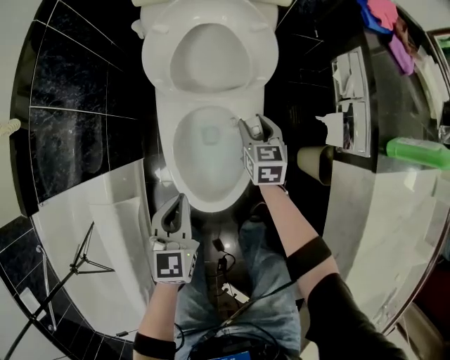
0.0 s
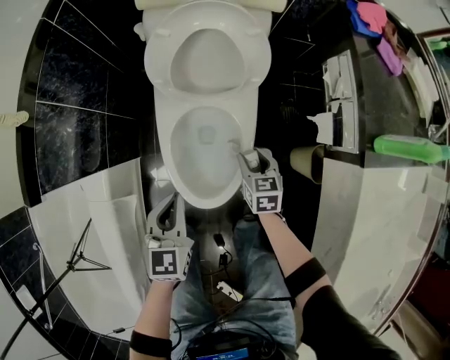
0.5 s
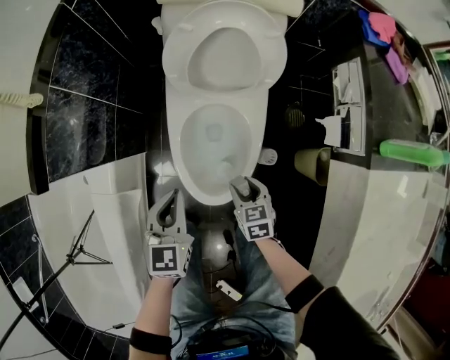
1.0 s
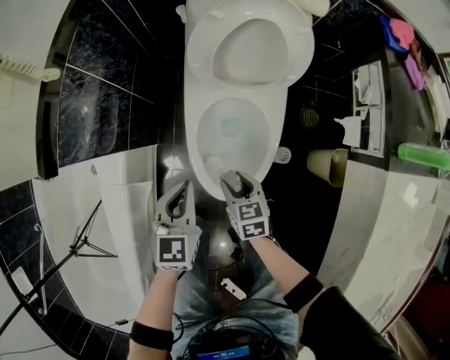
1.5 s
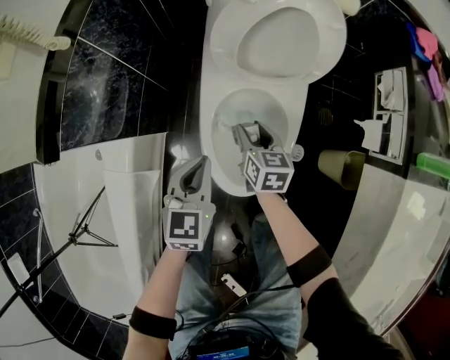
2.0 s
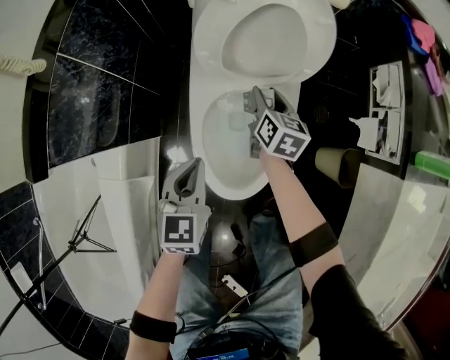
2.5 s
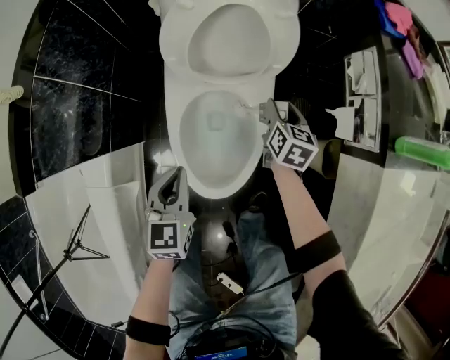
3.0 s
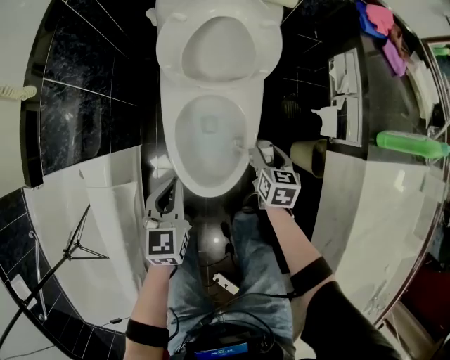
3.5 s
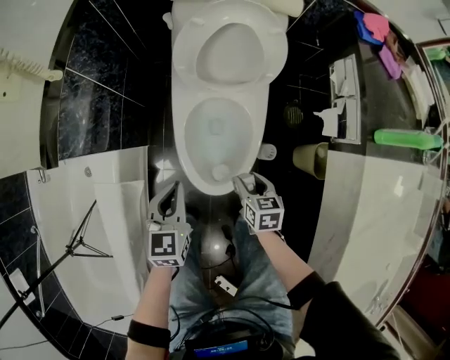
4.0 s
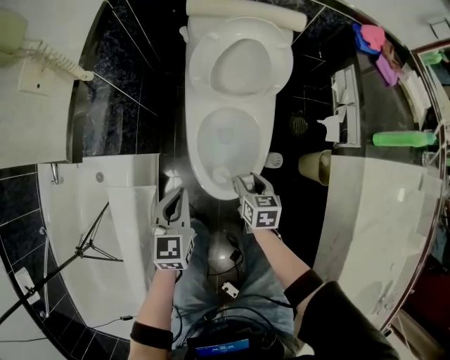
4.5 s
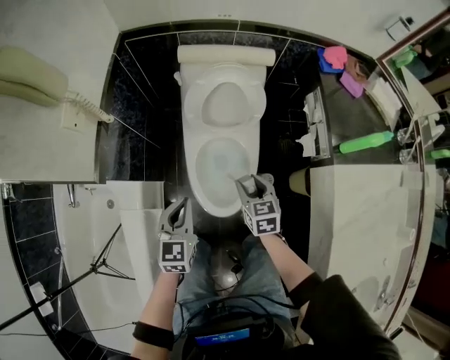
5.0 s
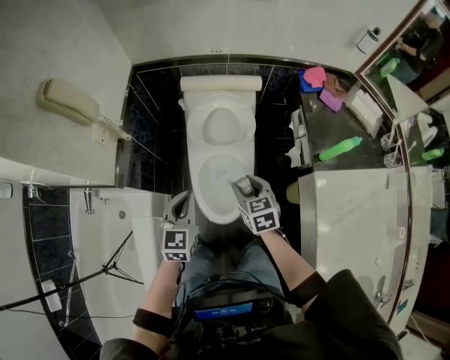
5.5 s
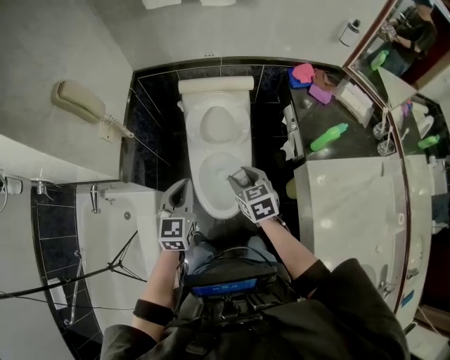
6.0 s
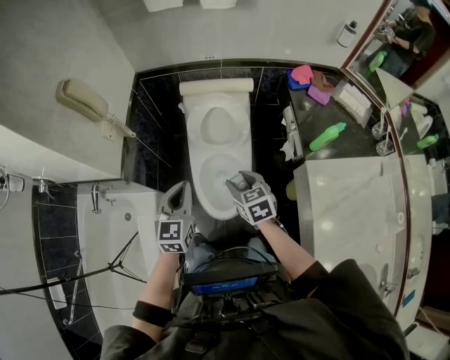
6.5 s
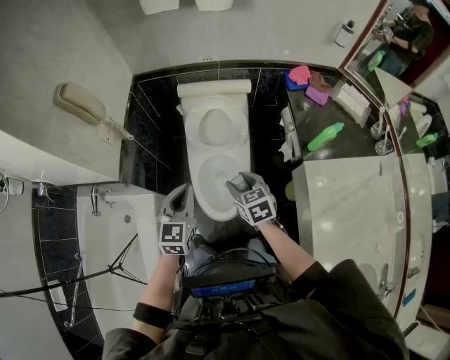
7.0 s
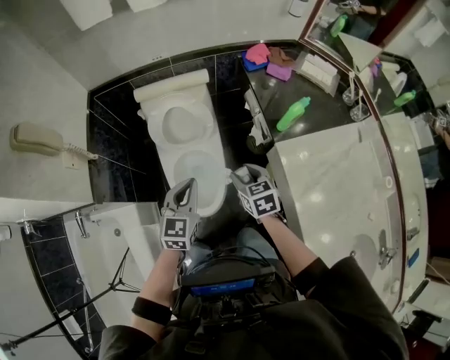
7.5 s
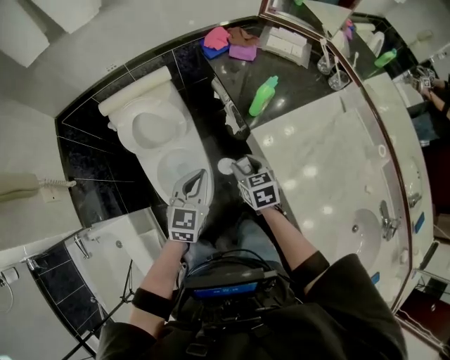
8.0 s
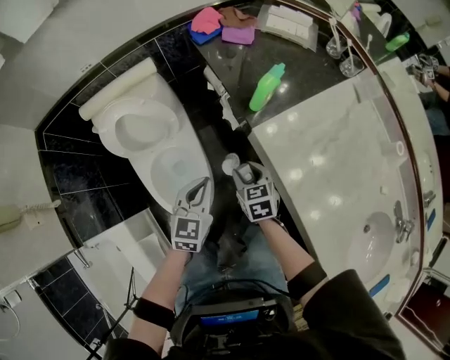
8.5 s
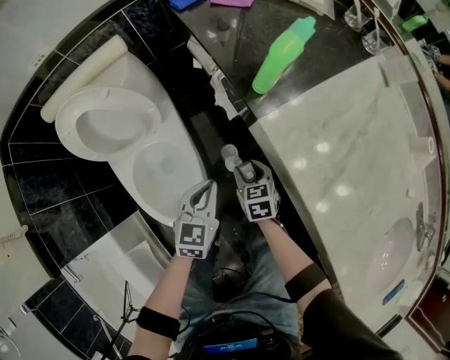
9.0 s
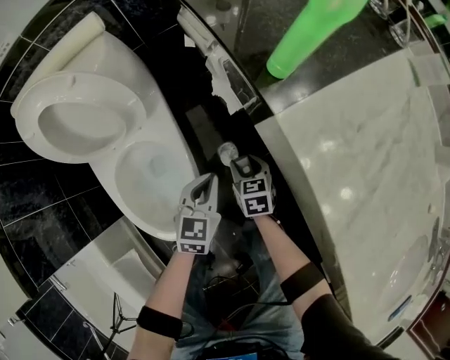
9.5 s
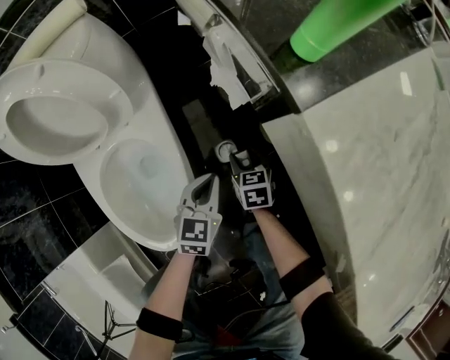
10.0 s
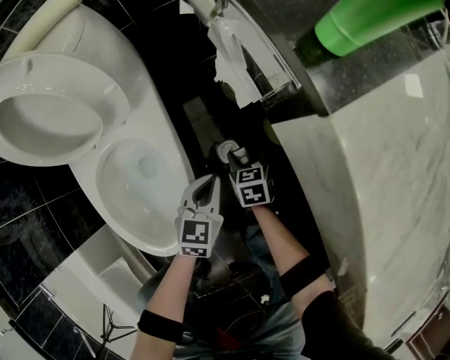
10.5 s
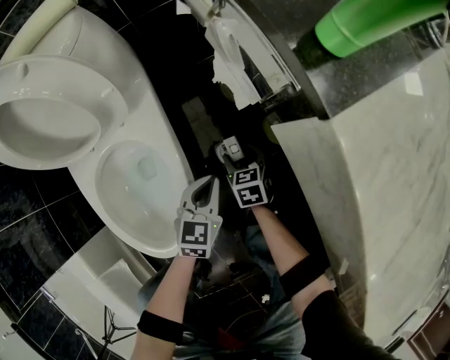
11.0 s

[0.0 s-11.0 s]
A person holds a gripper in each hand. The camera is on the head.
0.0 to 2.0 s: The right gripper travels to the left by about 15 cm, and goes backward and returns, about 20 cm each way; the left gripper is displaced to the left by some 5 cm.
2.0 to 3.5 s: The right gripper goes some 20 cm to the right.
3.5 to 5.5 s: The two grippers go approximately 30 cm upward. The right gripper turns by about 20 degrees.
5.5 to 7.5 s: The left gripper heads to the right, covering about 15 cm; the right gripper is displaced to the right and backward by roughly 15 cm.
7.5 to 9.0 s: Both grippers move downward and to the right, some 35 cm. The left gripper swivels approximately 20 degrees; the right gripper changes its angle by roughly 20 degrees.
9.0 to 11.0 s: The grippers both shift downward by roughly 25 cm.

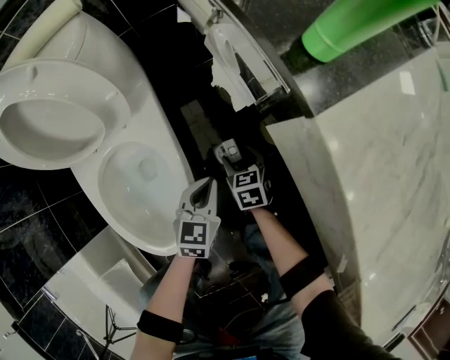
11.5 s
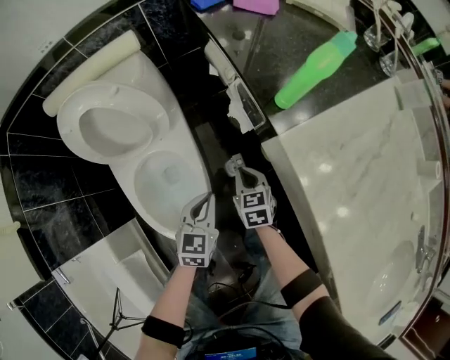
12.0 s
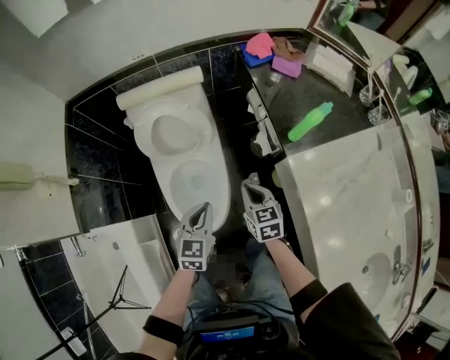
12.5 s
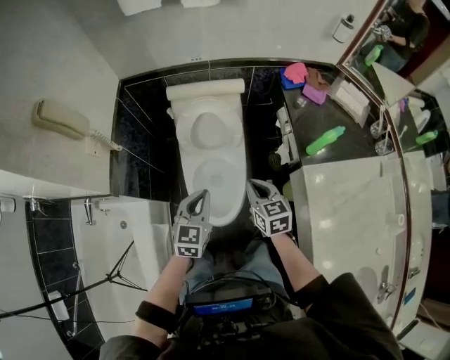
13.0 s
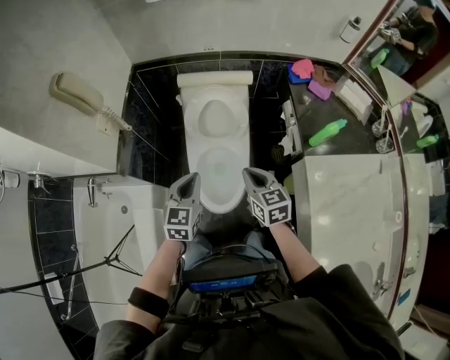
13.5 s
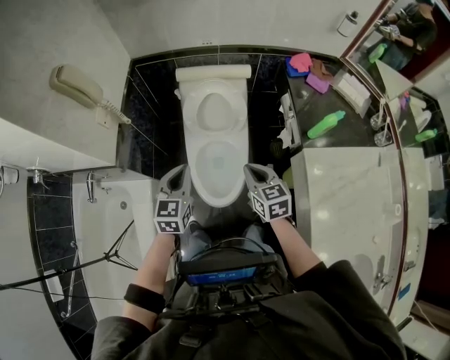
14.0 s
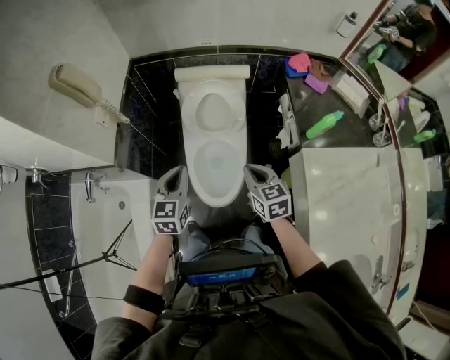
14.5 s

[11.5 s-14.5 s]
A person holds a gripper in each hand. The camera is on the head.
11.5 to 13.0 s: The grippers both shift upward by about 50 cm. The right gripper rotates some 30 degrees, and closes its fingers, while the left gripper swivels some 30 degrees.
13.0 to 14.5 s: The left gripper travels to the left by about 10 cm. Meanwhile the right gripper ends up approximately 5 cm from where it was.

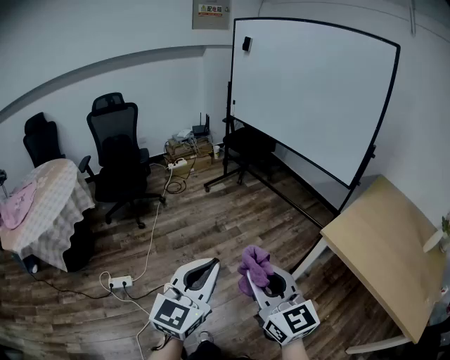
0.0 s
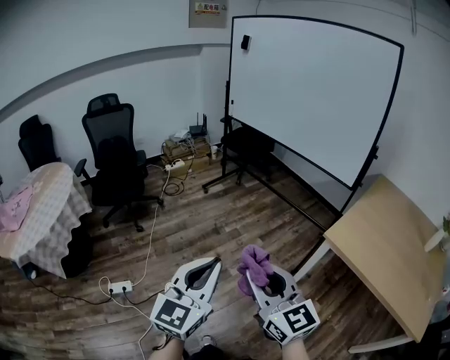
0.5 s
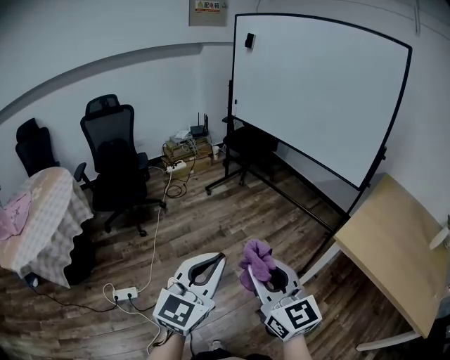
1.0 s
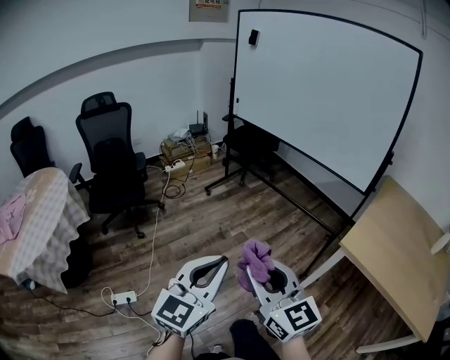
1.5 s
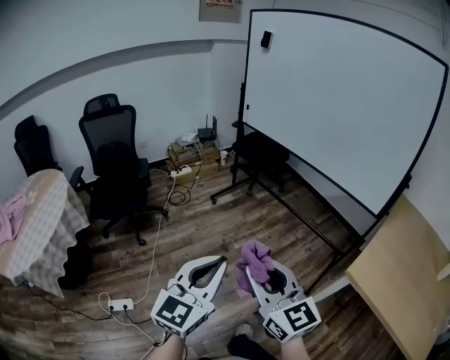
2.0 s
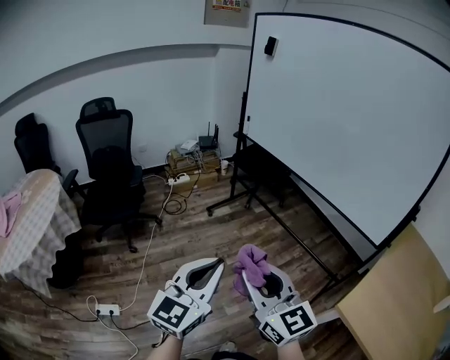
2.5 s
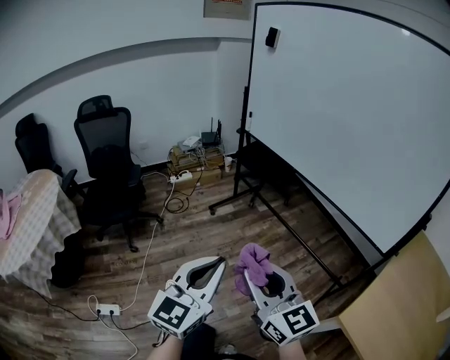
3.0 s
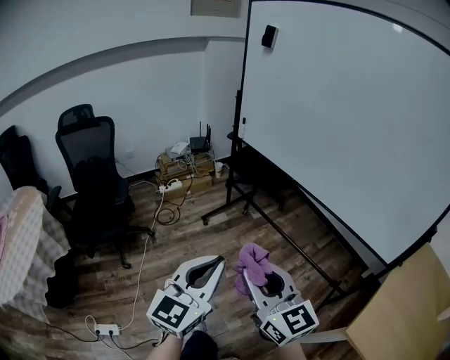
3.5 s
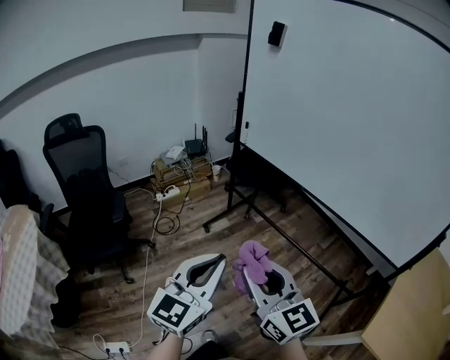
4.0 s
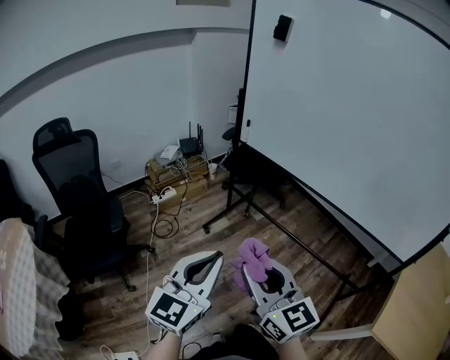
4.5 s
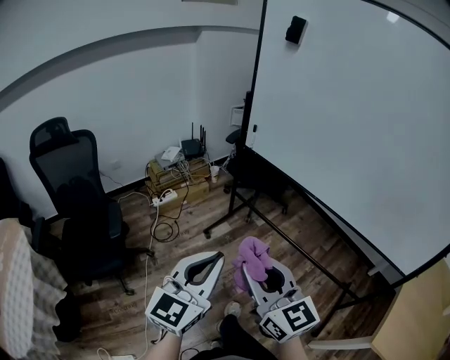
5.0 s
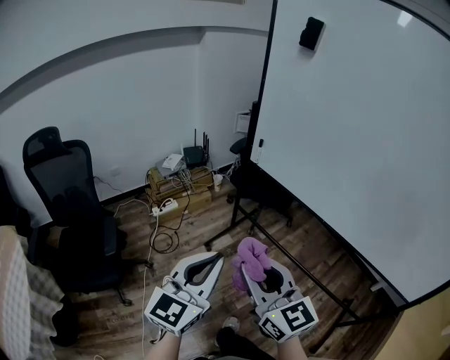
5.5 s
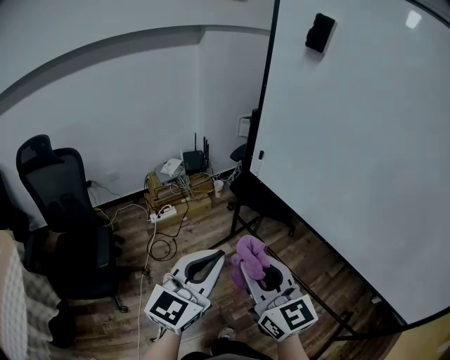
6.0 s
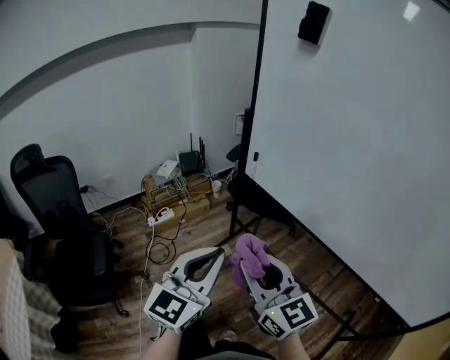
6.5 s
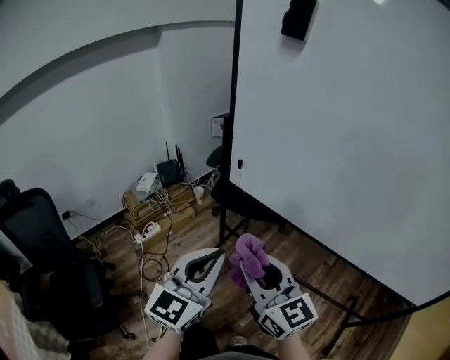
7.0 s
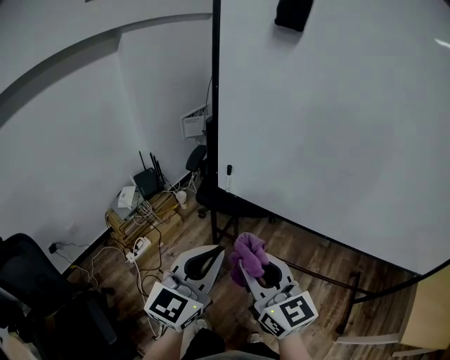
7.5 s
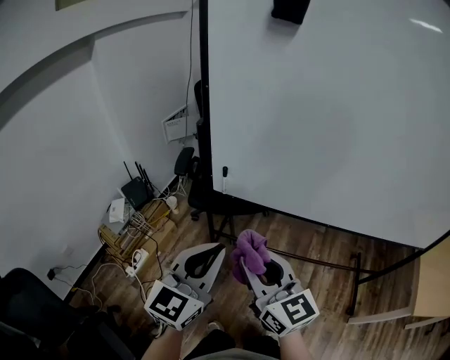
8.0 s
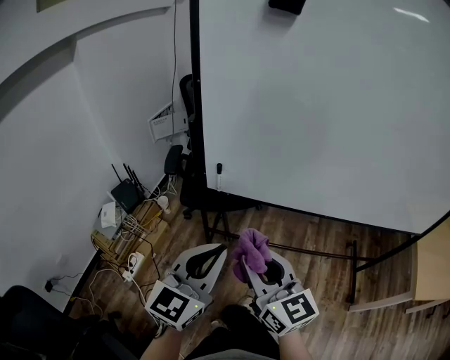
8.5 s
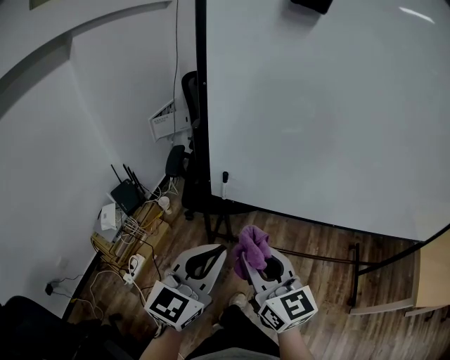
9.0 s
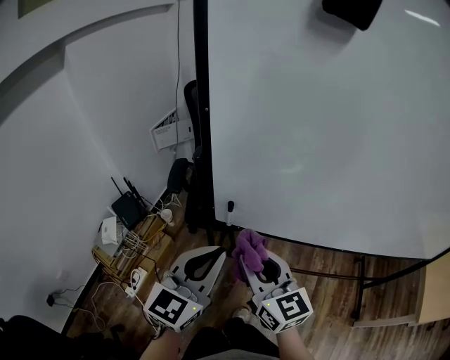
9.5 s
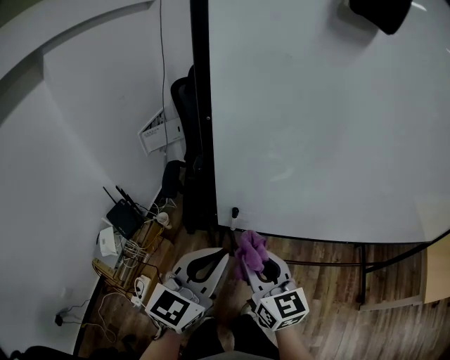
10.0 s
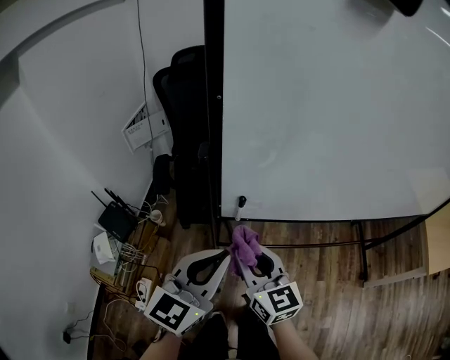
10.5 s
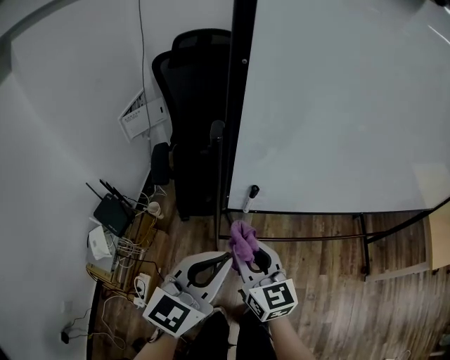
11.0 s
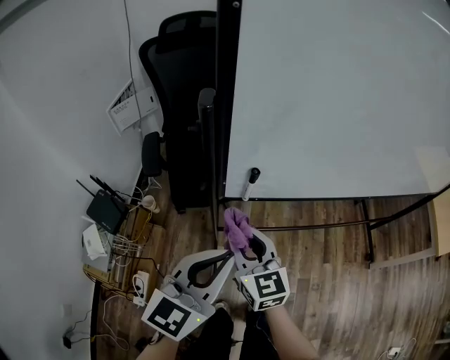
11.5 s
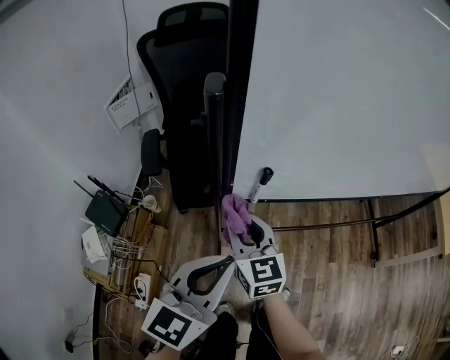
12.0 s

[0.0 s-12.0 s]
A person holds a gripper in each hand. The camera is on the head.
0.0 to 2.0 s: The two grippers go about 25 cm forward.
2.0 to 4.0 s: Both grippers travel together forward, some 40 cm.
4.0 to 6.0 s: Both grippers travel together forward, some 35 cm.
6.0 to 8.0 s: The right gripper shifts by about 20 cm, and turns by about 30 degrees. Meanwhile the left gripper changes place by roughly 25 cm, and changes its angle by roughly 30 degrees.
8.0 to 10.0 s: The left gripper moves forward and to the left, about 20 cm. The right gripper travels forward by about 20 cm.
10.0 to 12.0 s: The left gripper goes about 15 cm downward. The right gripper moves downward, to the left and forward, some 20 cm.

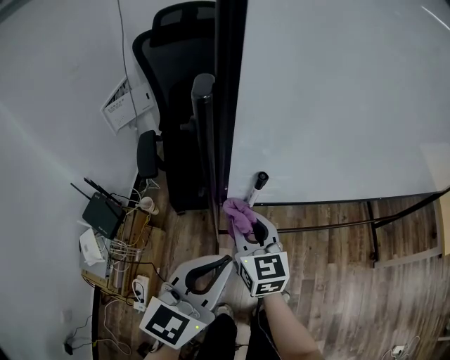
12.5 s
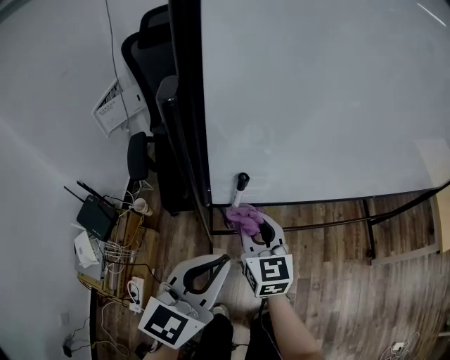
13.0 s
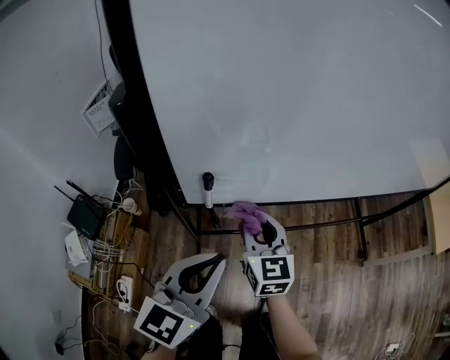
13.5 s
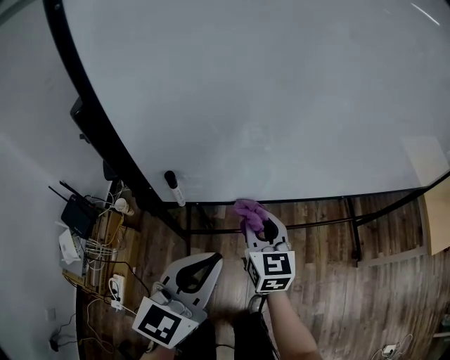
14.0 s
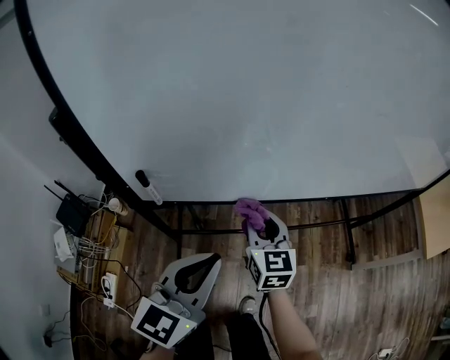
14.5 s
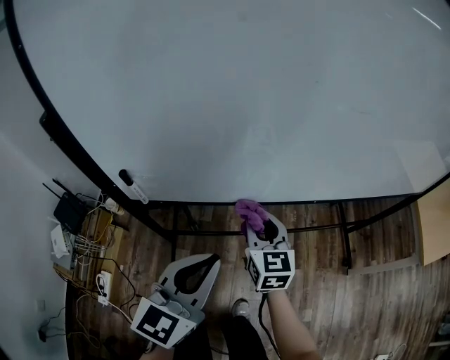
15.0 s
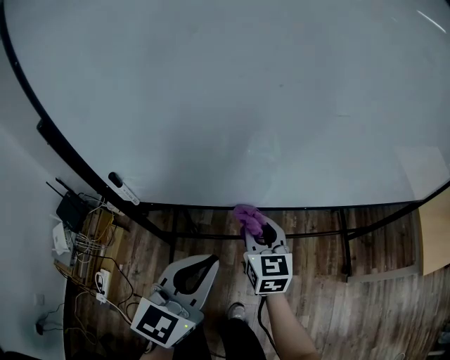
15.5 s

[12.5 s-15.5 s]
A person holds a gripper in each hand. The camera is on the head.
12.5 to 14.0 s: Both grippers travel together to the right, approximately 15 cm.
14.0 to 15.5 s: Both grippers travel together to the right, roughly 10 cm.
